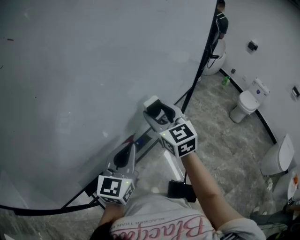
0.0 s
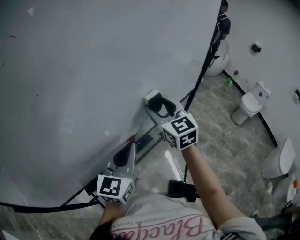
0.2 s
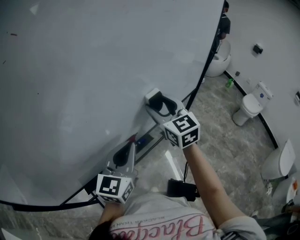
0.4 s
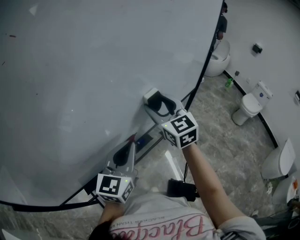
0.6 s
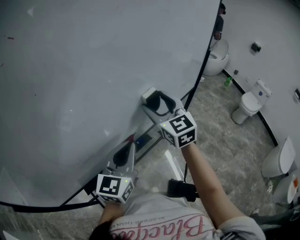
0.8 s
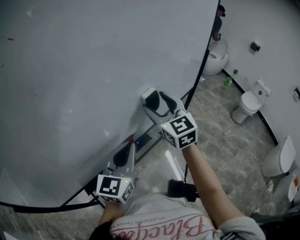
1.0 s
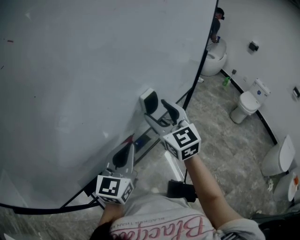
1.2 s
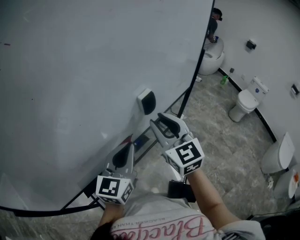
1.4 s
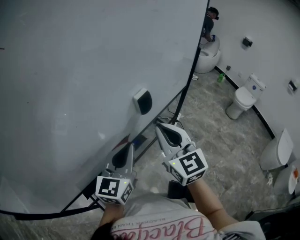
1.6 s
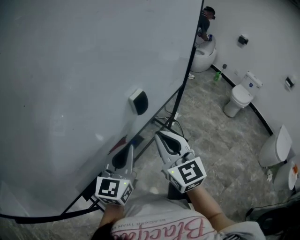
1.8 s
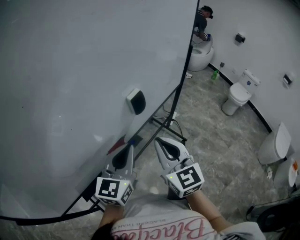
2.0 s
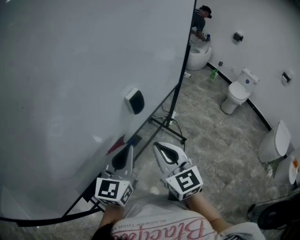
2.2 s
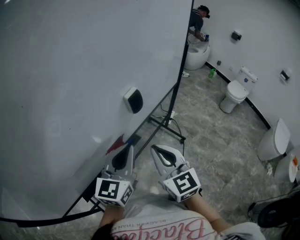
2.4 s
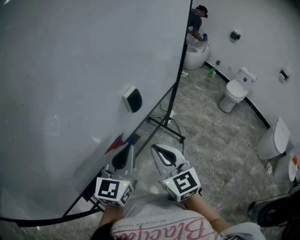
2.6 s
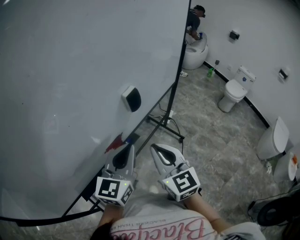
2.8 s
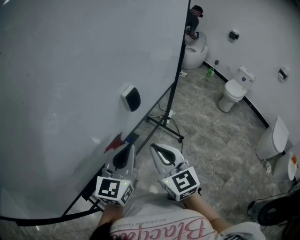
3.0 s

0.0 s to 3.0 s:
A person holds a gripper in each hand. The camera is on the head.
0.0 to 1.6 s: The right gripper travels backward by approximately 10 cm, and closes up.
1.6 to 3.0 s: The right gripper shifts some 10 cm backward and downward.

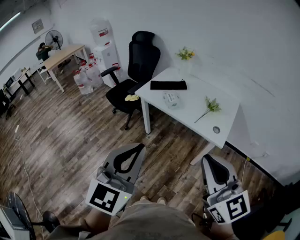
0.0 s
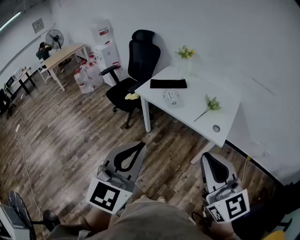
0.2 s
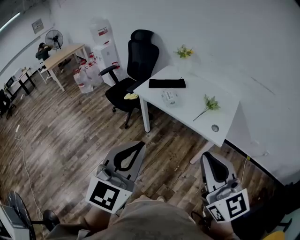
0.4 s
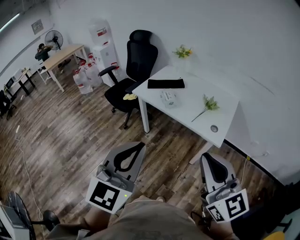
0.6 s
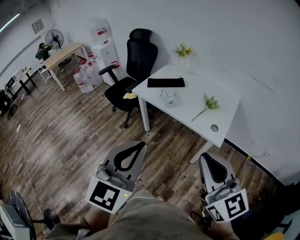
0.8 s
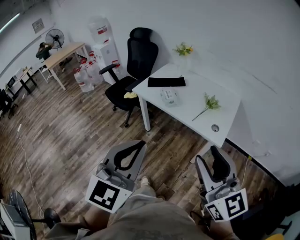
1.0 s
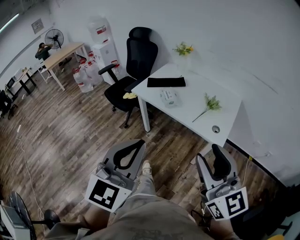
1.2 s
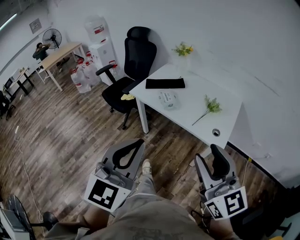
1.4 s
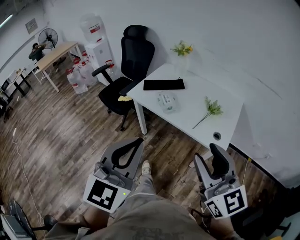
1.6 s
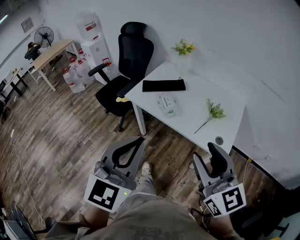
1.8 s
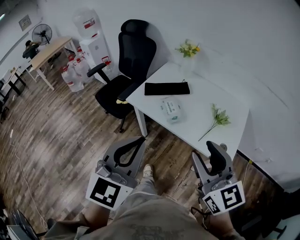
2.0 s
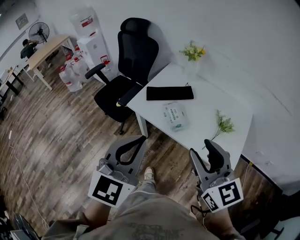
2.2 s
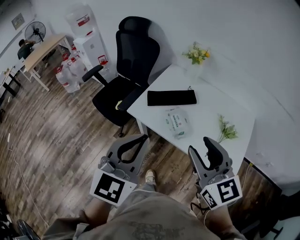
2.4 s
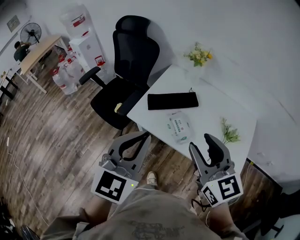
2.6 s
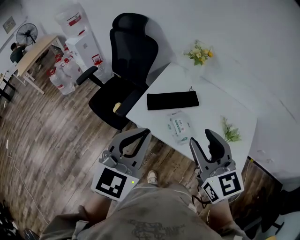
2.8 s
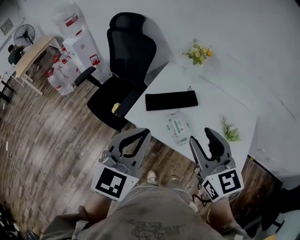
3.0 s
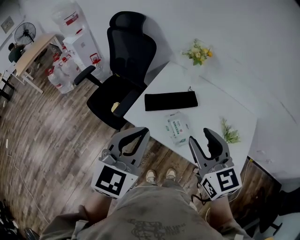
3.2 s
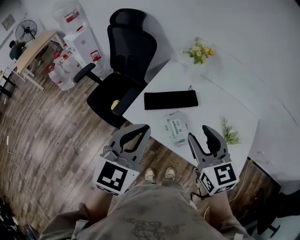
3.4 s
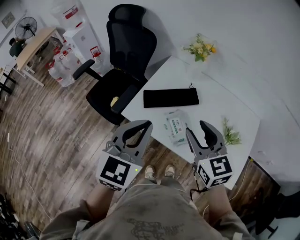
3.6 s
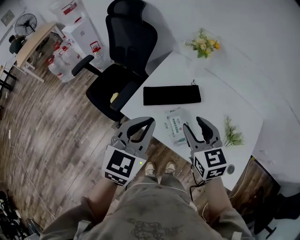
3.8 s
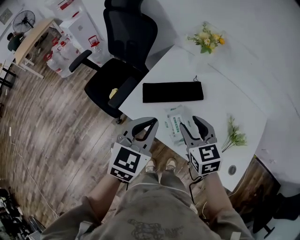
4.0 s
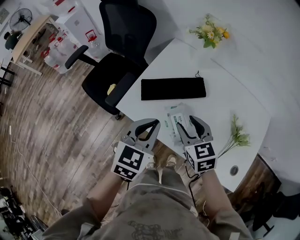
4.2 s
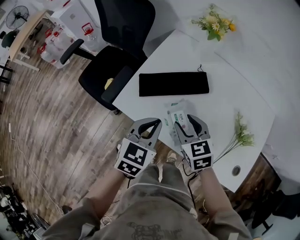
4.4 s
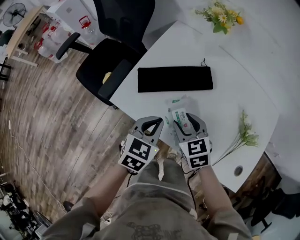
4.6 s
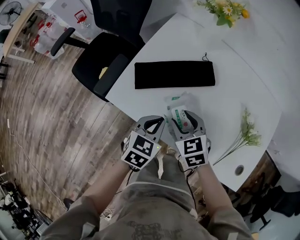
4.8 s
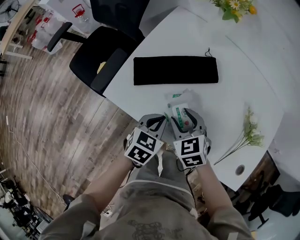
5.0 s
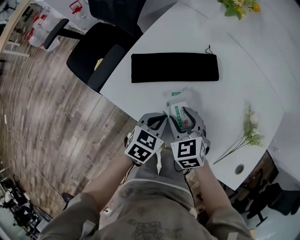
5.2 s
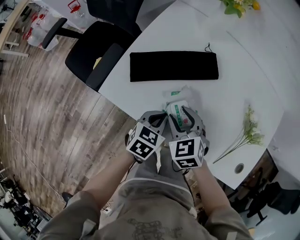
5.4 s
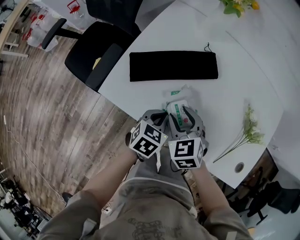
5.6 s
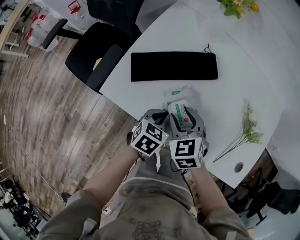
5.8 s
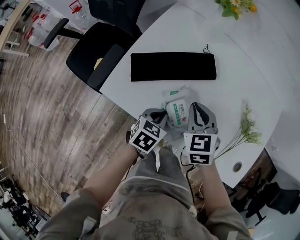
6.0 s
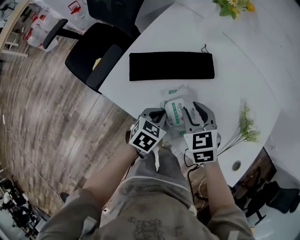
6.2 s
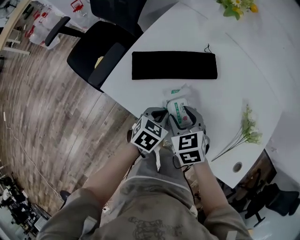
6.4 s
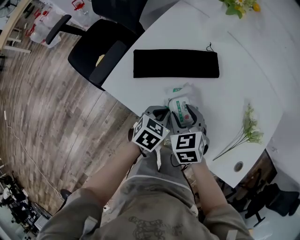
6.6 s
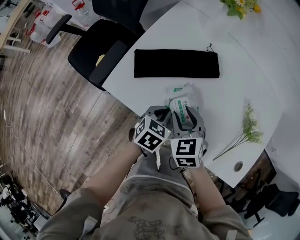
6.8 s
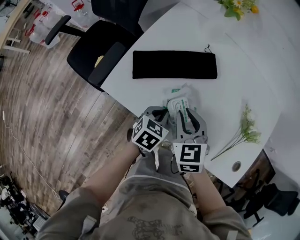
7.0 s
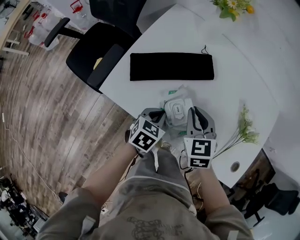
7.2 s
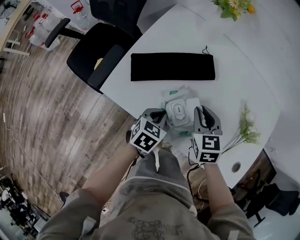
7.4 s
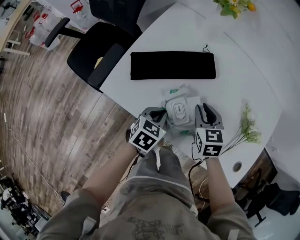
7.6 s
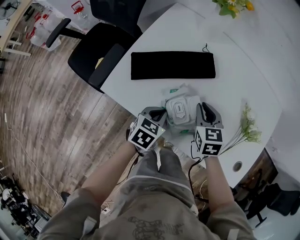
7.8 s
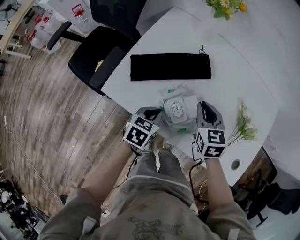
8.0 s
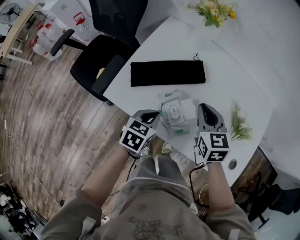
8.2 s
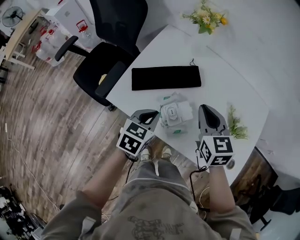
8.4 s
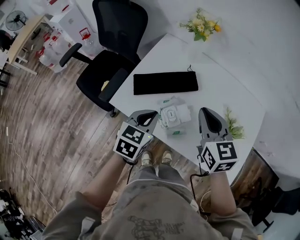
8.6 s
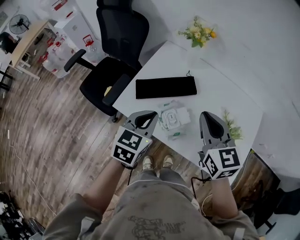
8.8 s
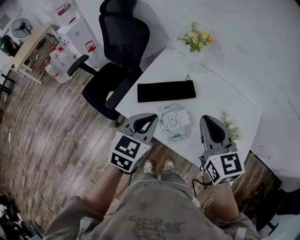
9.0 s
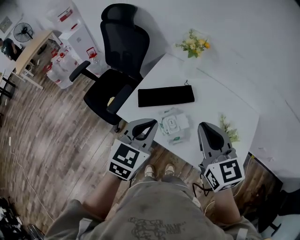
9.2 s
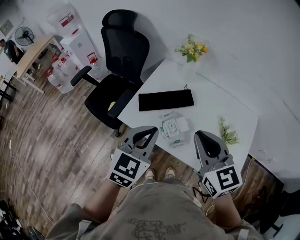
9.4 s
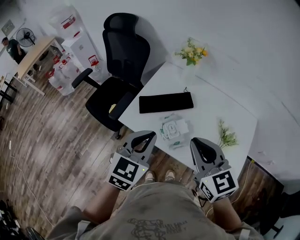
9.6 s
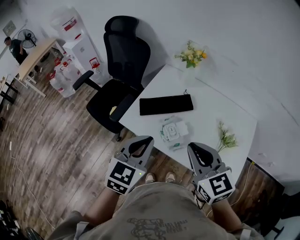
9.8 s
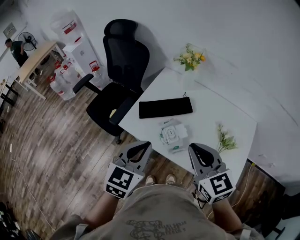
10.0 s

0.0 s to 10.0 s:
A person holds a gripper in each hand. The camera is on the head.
0.0 to 1.4 s: Both grippers travel together forward, about 10 cm. The right gripper opens.
1.4 to 2.8 s: Both grippers are carried forward, about 40 cm.
2.8 to 4.2 s: The two grippers go about 25 cm downward and forward. The right gripper swivels about 20 degrees. The left gripper changes its angle by some 20 degrees.
4.2 to 5.8 s: The right gripper goes roughly 15 cm downward, while the left gripper is displaced downward by roughly 25 cm, and changes its angle by approximately 30 degrees.
5.8 to 7.2 s: The right gripper ends up about 5 cm from where it was, and closes its fingers.
7.2 to 8.6 s: Both grippers travel together upward, approximately 20 cm.
8.6 to 10.0 s: The right gripper is displaced backward and upward by roughly 15 cm. Meanwhile the left gripper goes approximately 20 cm upward and backward.

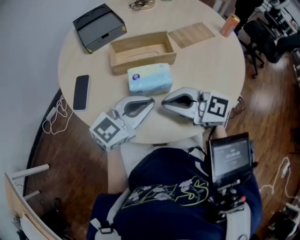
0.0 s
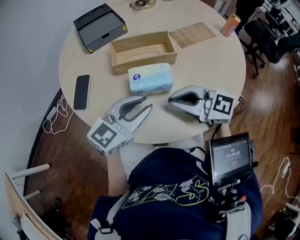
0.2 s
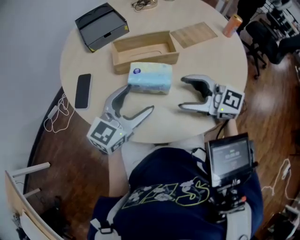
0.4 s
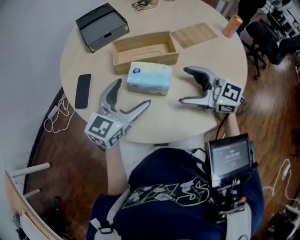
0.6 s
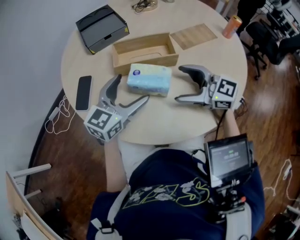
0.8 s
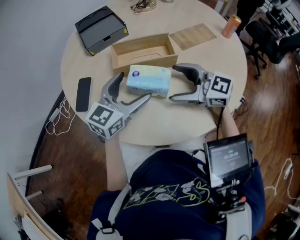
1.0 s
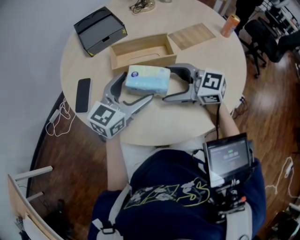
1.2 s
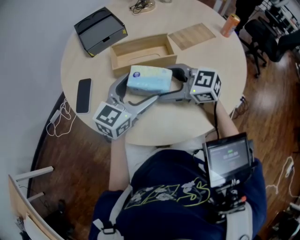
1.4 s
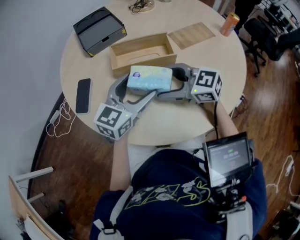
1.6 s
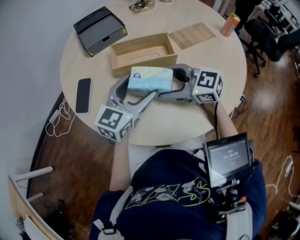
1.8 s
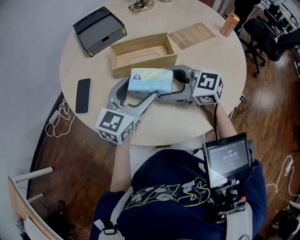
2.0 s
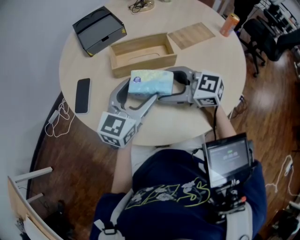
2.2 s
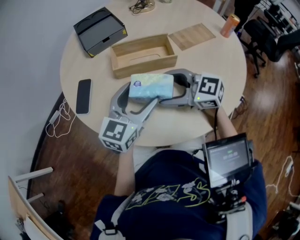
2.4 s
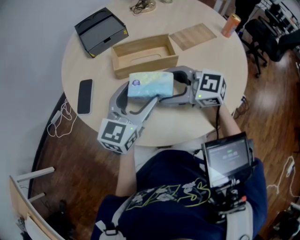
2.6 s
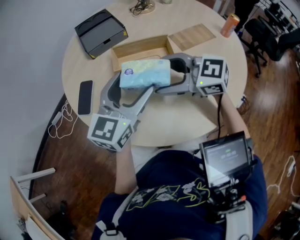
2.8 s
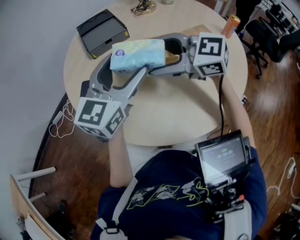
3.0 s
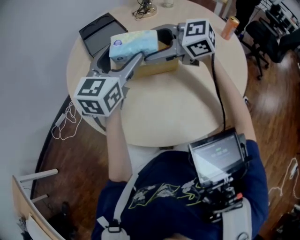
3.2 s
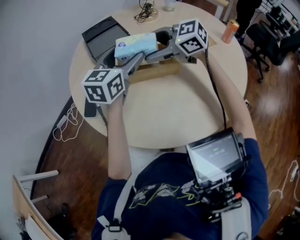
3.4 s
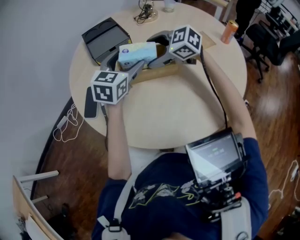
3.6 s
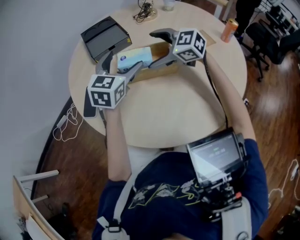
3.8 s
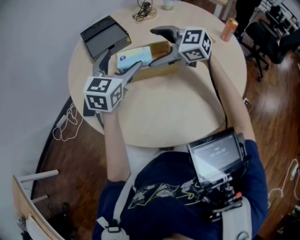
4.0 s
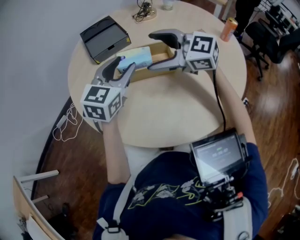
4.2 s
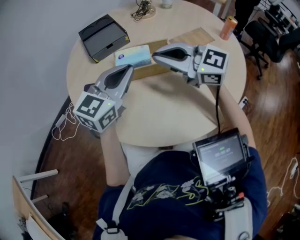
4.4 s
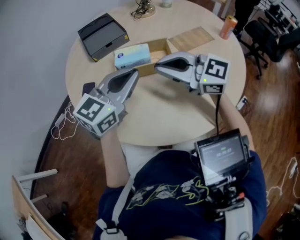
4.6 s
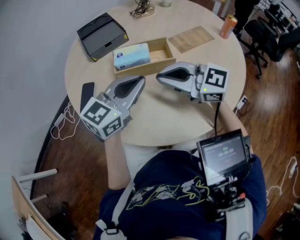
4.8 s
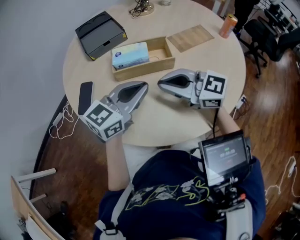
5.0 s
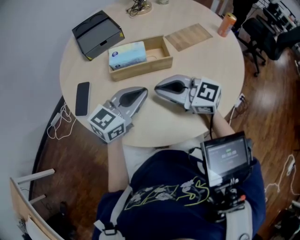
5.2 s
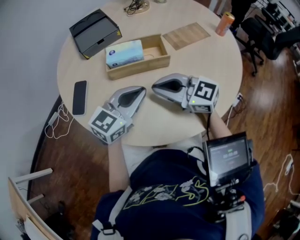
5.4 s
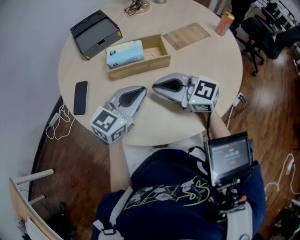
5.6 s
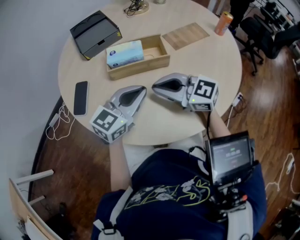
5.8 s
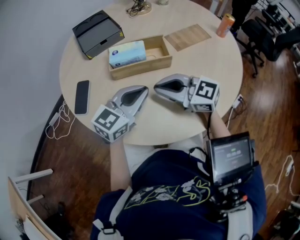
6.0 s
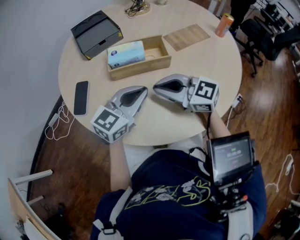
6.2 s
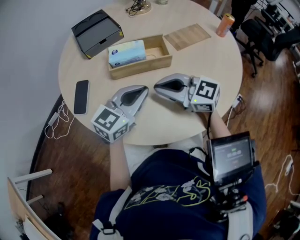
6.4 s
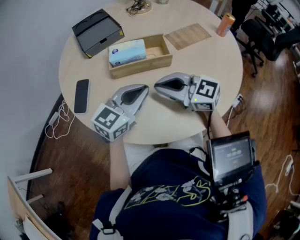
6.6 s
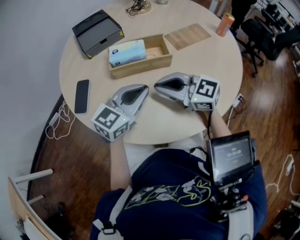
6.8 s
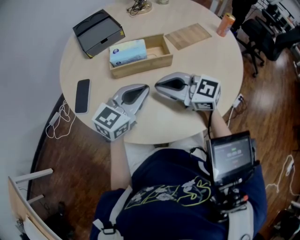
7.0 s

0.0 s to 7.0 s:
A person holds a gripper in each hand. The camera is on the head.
0.0 to 1.4 s: The left gripper moves some 10 cm, and opens up; the right gripper ends up some 10 cm from where it was, and opens up.
1.4 to 2.8 s: Both grippers move upward, some 5 cm.
2.8 to 4.2 s: The left gripper moves forward, some 10 cm; the right gripper is displaced forward and upward by some 10 cm.
4.2 to 5.6 s: The left gripper moves approximately 15 cm, swivels approximately 20 degrees, and closes up; the right gripper ends up approximately 15 cm from where it was, and closes.
5.6 to 7.0 s: Both grippers stay about where they are.

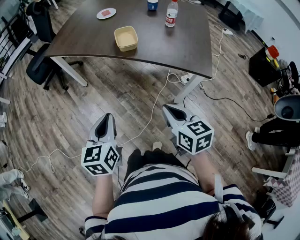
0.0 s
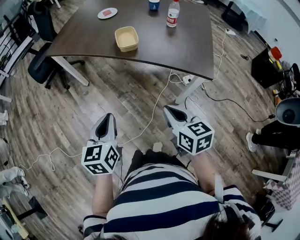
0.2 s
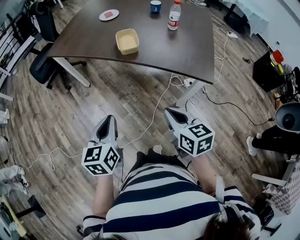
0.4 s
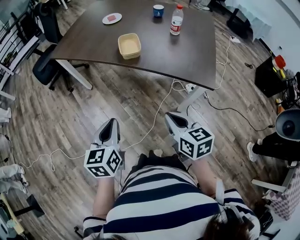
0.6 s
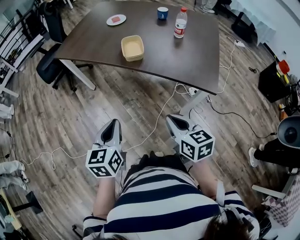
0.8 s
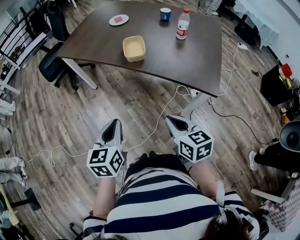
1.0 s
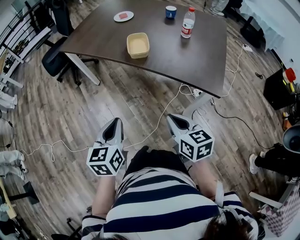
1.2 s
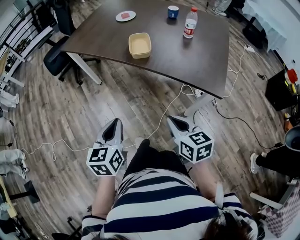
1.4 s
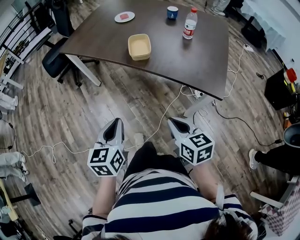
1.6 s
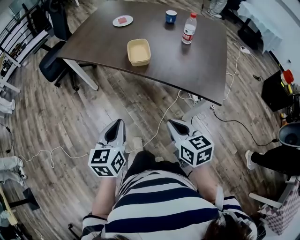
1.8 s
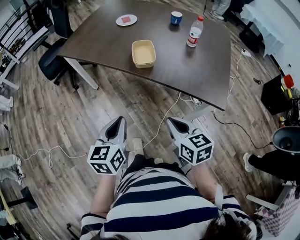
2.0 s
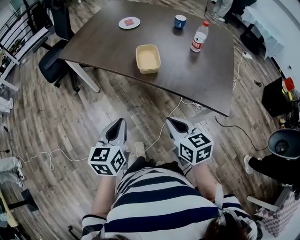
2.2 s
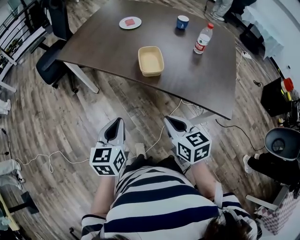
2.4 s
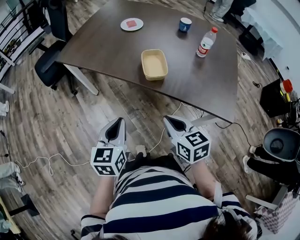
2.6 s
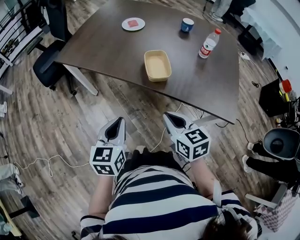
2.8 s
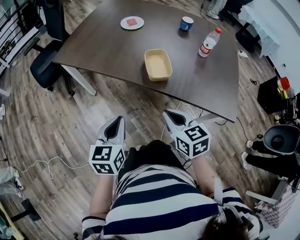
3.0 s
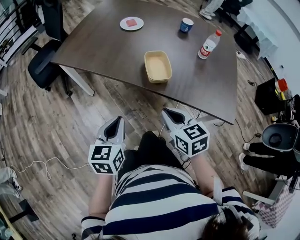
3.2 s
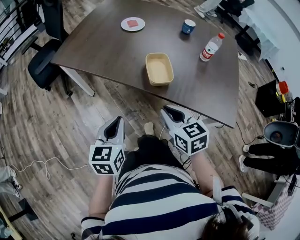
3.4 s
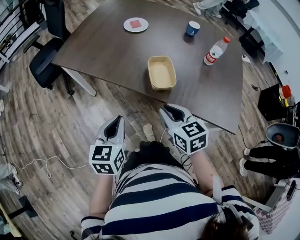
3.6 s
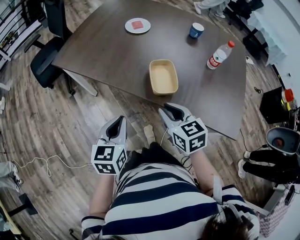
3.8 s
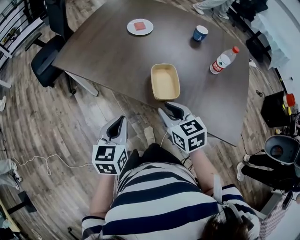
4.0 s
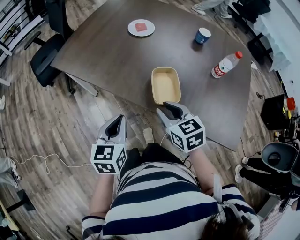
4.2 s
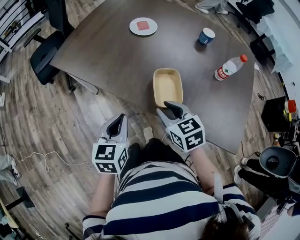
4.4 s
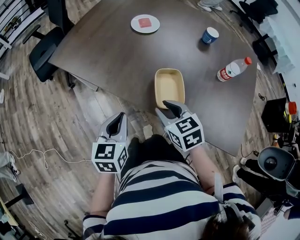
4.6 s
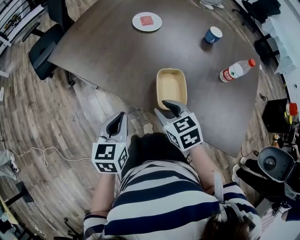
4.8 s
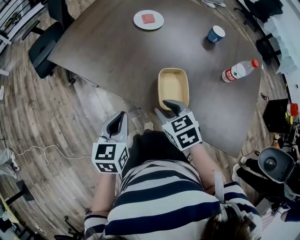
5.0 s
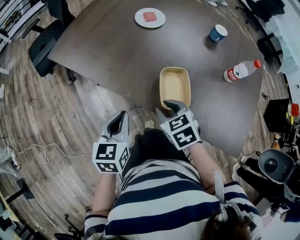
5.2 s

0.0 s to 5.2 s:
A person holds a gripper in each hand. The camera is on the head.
0.0 to 1.8 s: The right gripper heads forward, covering about 5 cm. The left gripper heads forward and to the right, covering some 10 cm.
1.8 to 3.4 s: Both grippers travel together forward and to the left, roughly 25 cm.
3.4 to 5.2 s: The right gripper heads forward and downward, covering some 20 cm, rotates some 30 degrees, and opens. Meanwhile the left gripper travels forward by some 15 cm.
